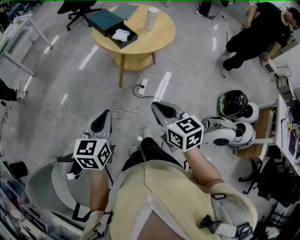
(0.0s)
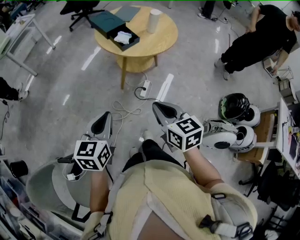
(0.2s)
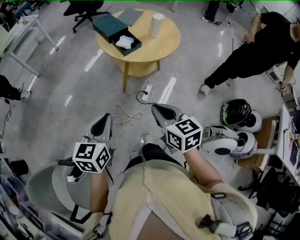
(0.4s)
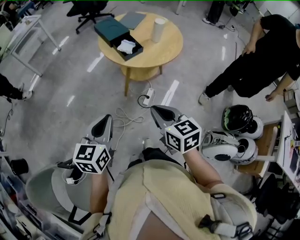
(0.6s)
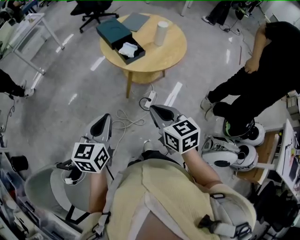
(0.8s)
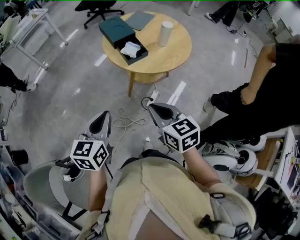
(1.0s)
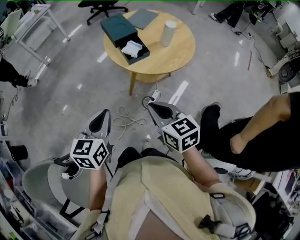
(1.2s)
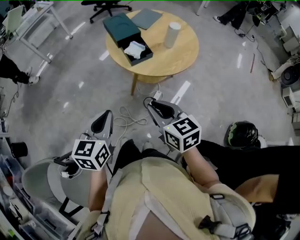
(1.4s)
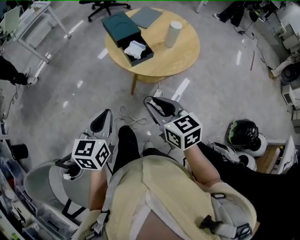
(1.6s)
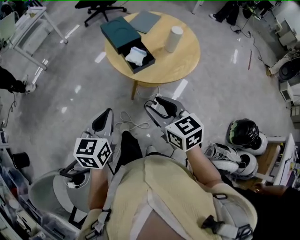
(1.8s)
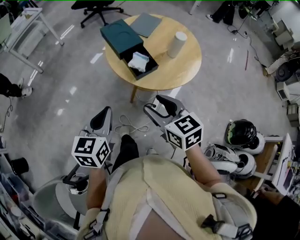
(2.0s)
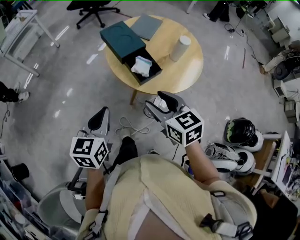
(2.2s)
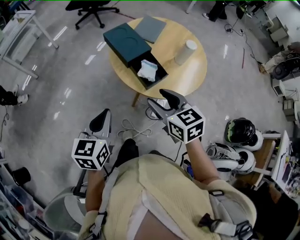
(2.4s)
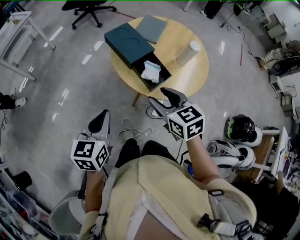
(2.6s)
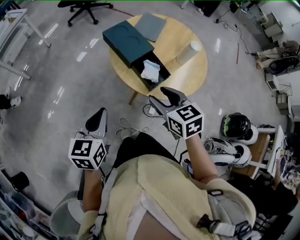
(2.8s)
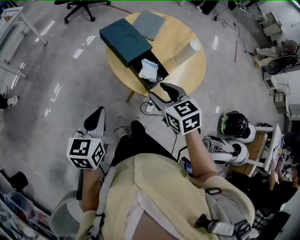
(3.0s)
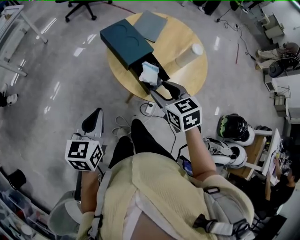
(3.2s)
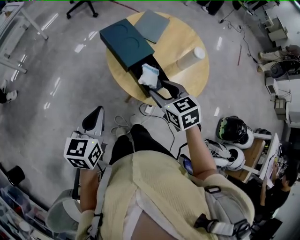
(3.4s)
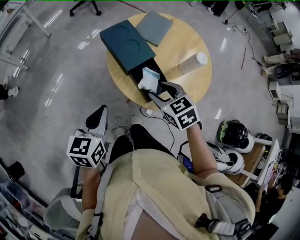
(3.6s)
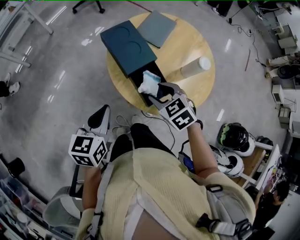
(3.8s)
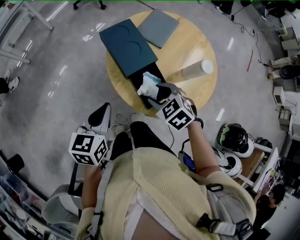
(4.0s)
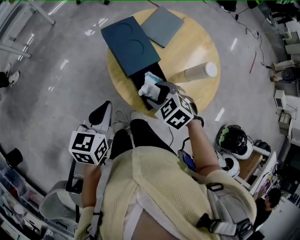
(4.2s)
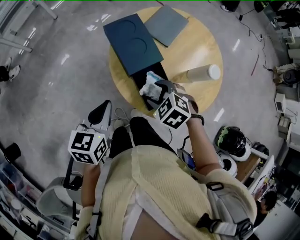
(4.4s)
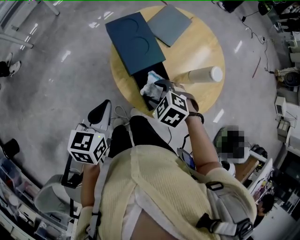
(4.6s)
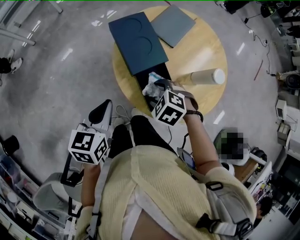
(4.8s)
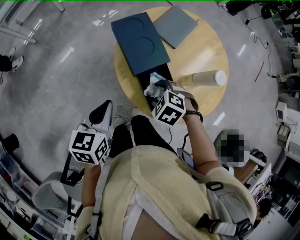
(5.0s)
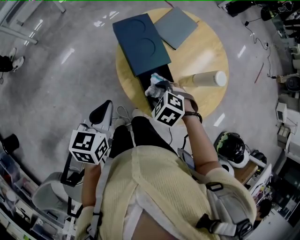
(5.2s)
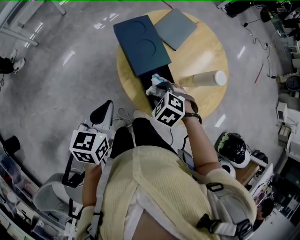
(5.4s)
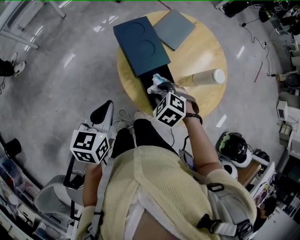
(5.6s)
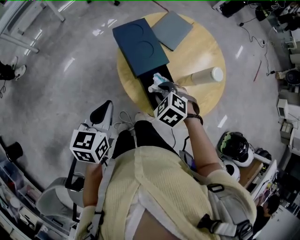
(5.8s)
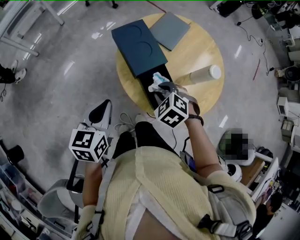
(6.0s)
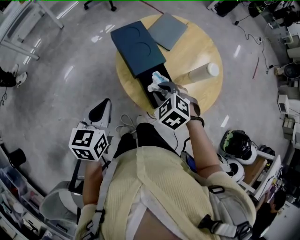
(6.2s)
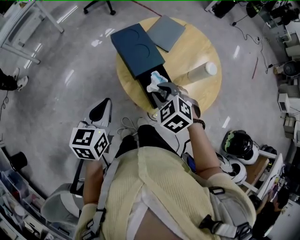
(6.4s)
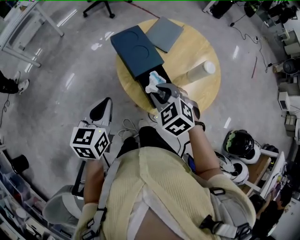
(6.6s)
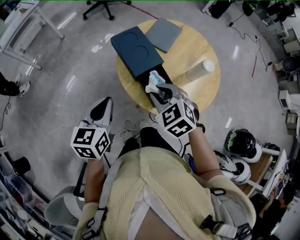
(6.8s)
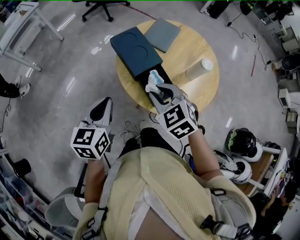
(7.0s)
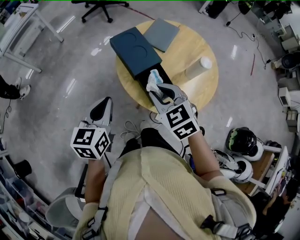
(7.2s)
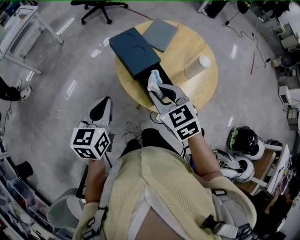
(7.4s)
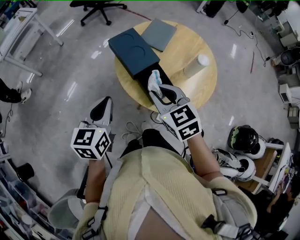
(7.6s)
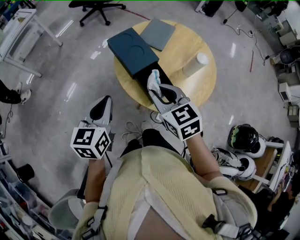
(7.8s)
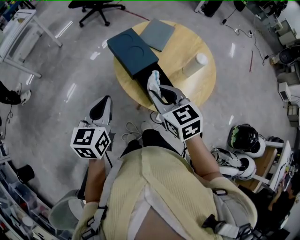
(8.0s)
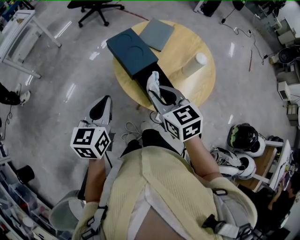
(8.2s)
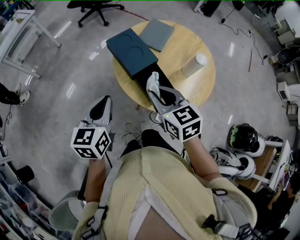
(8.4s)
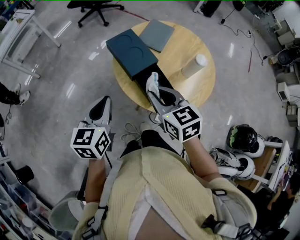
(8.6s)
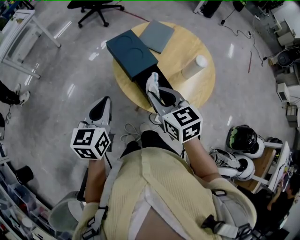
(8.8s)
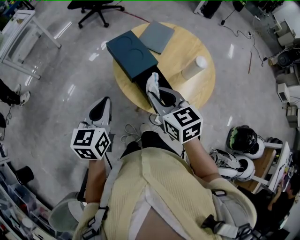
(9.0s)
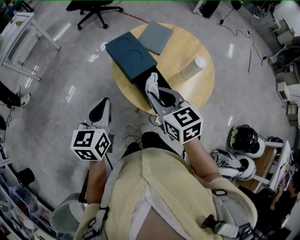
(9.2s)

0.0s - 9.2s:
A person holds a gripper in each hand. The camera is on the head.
0.0s - 1.6s: Both grippers move forward, about 15 cm. The right gripper opens its fingers.
1.6s - 3.0s: The right gripper shifts some 20 cm forward, and opens up. Meanwhile the left gripper travels forward and to the left by roughly 25 cm.
3.0s - 4.6s: The right gripper travels downward and forward by roughly 15 cm, and angles its fingers downward, by some 30 degrees. Meanwhile the left gripper heads forward and to the right, covering roughly 10 cm.
4.6s - 6.2s: The right gripper closes its fingers.
6.2s - 7.6s: The left gripper shifts by some 5 cm; the right gripper travels upward by some 10 cm, and changes its angle by some 40 degrees.
7.6s - 9.2s: The grippers move only a little.

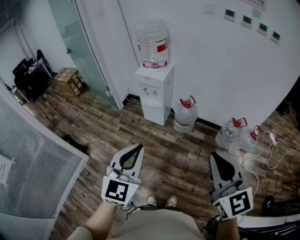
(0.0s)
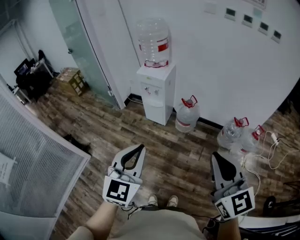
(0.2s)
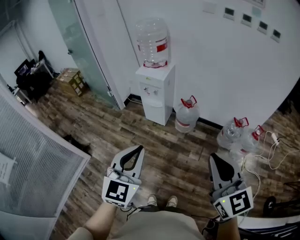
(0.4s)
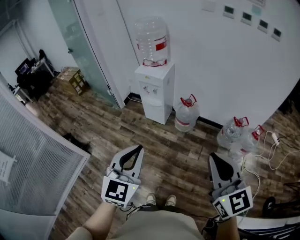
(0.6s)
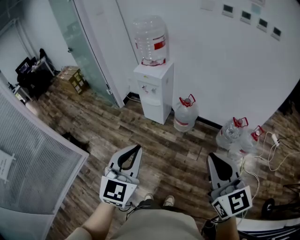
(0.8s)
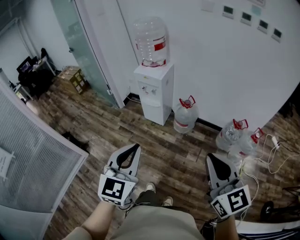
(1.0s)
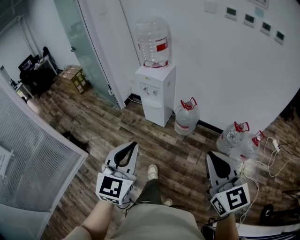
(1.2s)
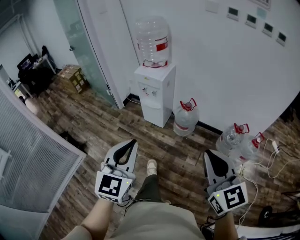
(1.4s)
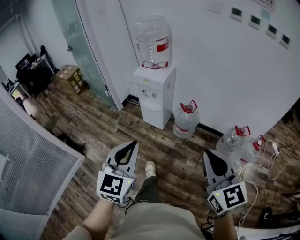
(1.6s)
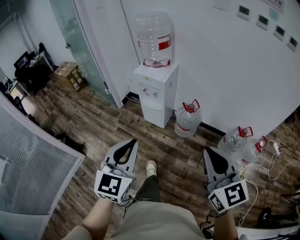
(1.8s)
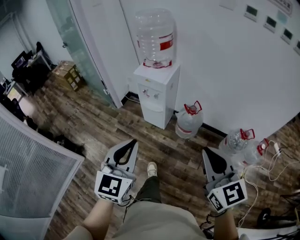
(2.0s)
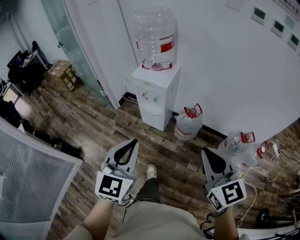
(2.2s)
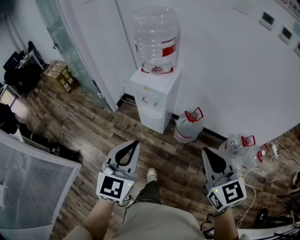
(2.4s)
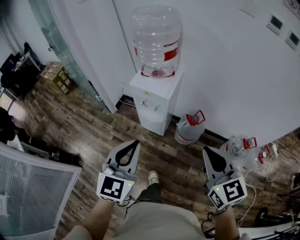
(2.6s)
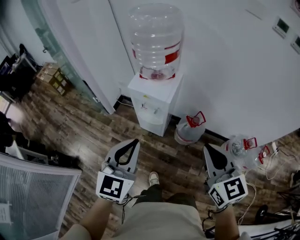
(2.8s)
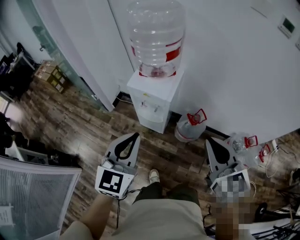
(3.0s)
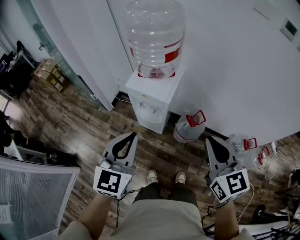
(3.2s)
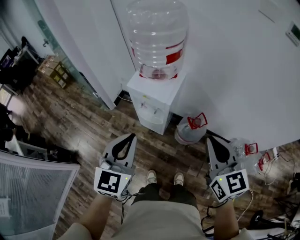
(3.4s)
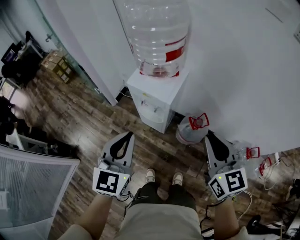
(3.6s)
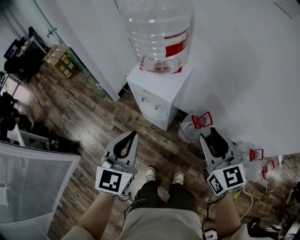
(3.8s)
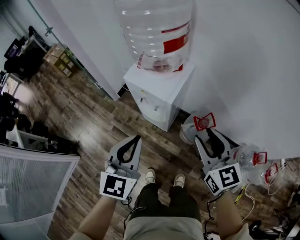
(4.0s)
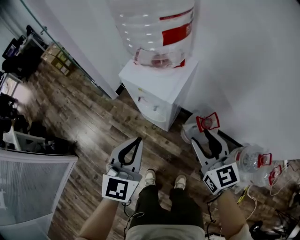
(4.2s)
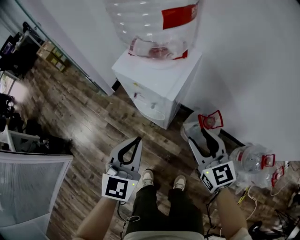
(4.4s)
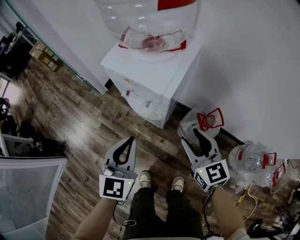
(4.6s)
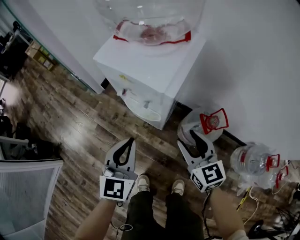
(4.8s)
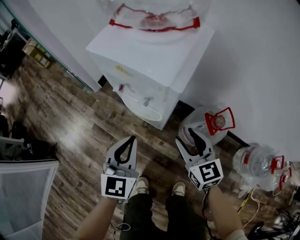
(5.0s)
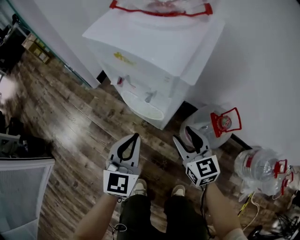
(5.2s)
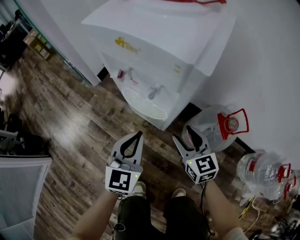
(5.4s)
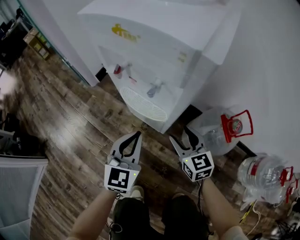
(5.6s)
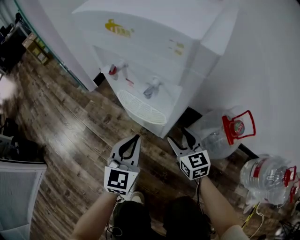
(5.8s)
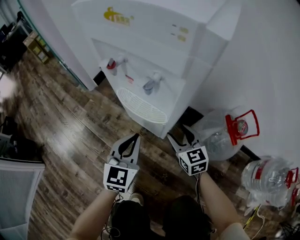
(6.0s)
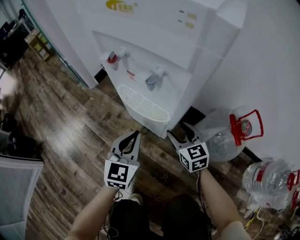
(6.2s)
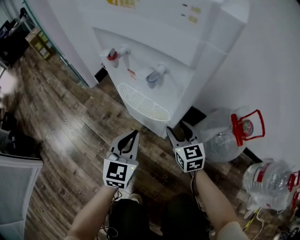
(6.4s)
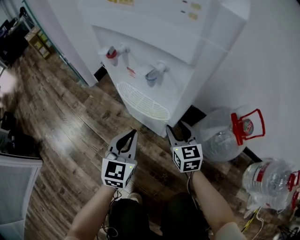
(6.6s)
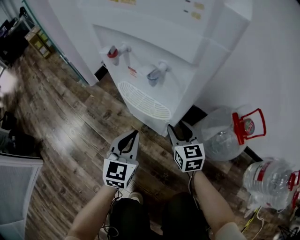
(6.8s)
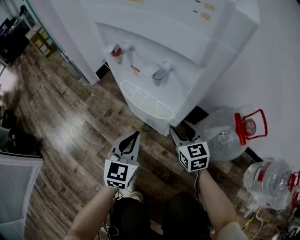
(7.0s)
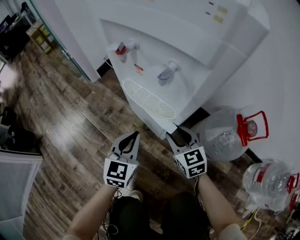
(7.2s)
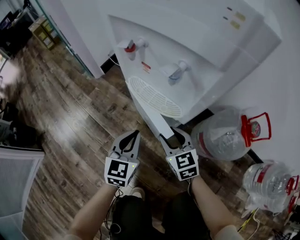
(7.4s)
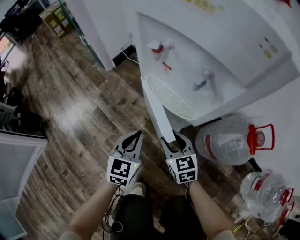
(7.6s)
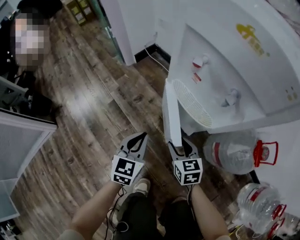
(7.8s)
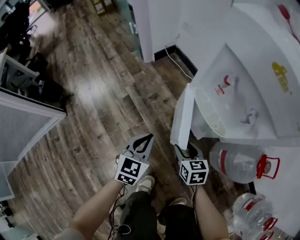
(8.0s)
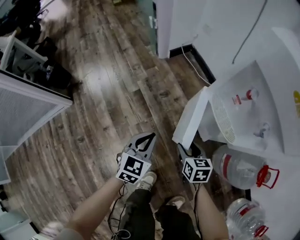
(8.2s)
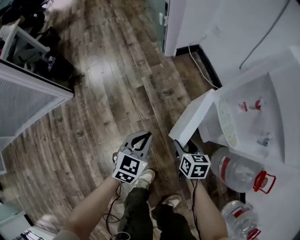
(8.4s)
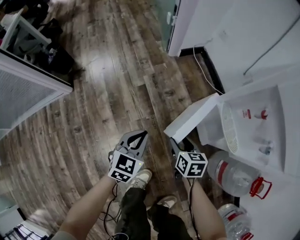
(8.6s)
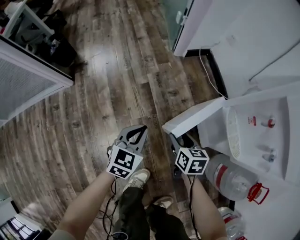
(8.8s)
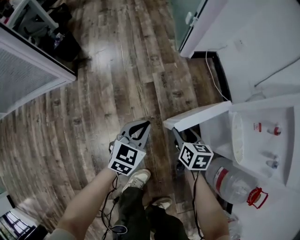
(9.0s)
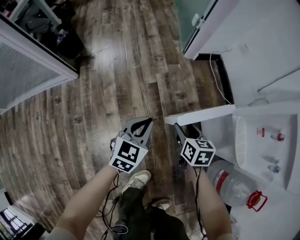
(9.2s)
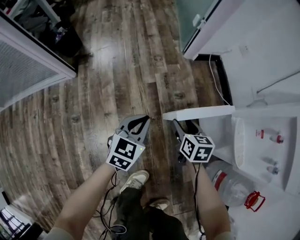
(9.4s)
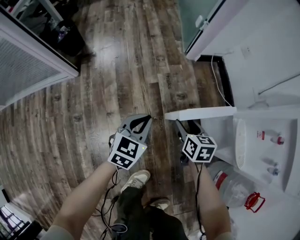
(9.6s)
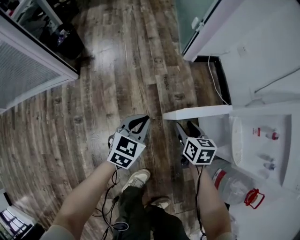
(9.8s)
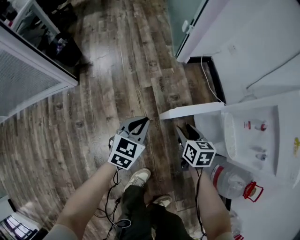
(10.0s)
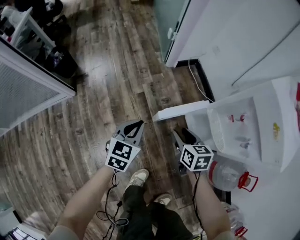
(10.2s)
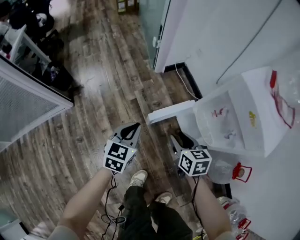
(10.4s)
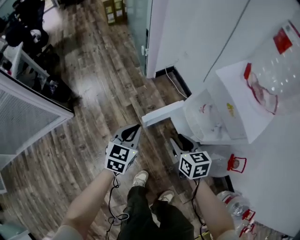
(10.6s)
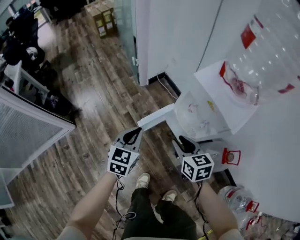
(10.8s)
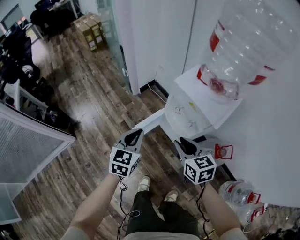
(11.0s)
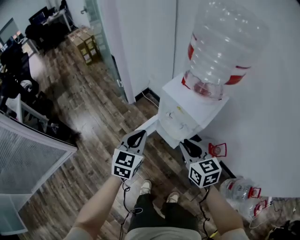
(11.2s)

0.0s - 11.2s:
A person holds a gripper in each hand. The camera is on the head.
0.0s - 1.6s: The grippers both shift forward and downward by some 10 cm.
1.6s - 3.2s: The two grippers go approximately 40 cm forward.
3.2s - 4.8s: The right gripper is displaced downward and forward by about 40 cm, and opens its fingers. The left gripper goes some 35 cm downward.
4.8s - 6.4s: Both grippers travel together downward, about 30 cm.
6.4s - 8.0s: The two grippers go about 20 cm to the left. The right gripper rotates about 30 degrees.
8.0s - 9.6s: The right gripper is displaced to the left and forward by about 25 cm, while the left gripper moves to the left, approximately 20 cm.
9.6s - 11.2s: The grippers both shift upward and to the right by some 50 cm. The left gripper swivels approximately 30 degrees. Meanwhile the right gripper changes its angle by some 30 degrees, and closes its fingers.

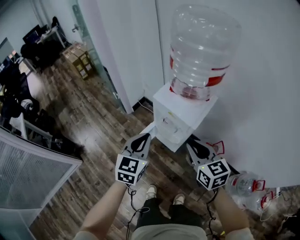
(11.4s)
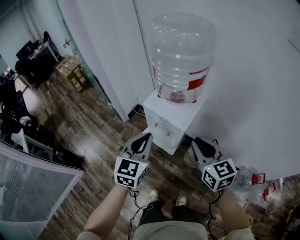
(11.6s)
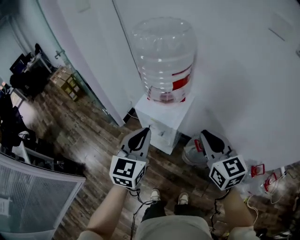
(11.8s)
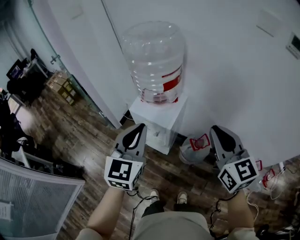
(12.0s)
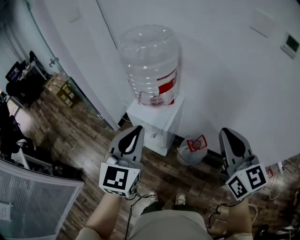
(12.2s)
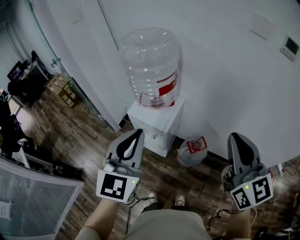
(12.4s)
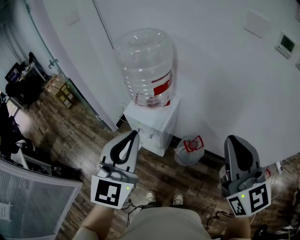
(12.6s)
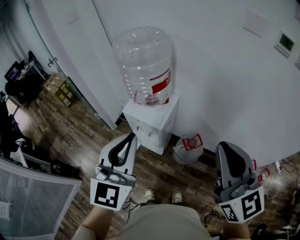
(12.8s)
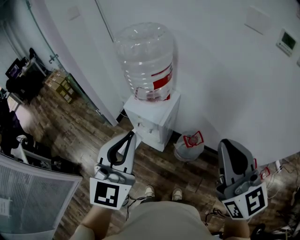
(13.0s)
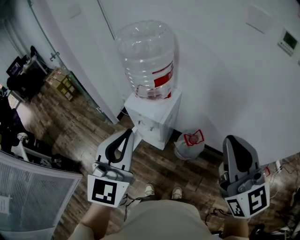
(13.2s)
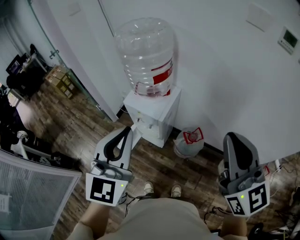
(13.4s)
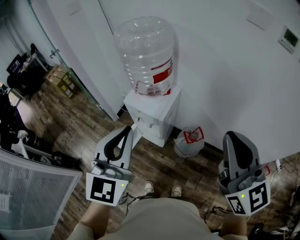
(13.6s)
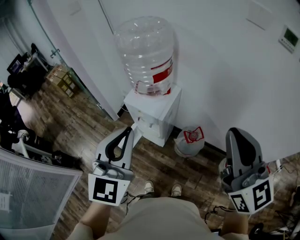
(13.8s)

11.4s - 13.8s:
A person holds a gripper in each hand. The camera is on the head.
11.4s - 12.6s: The grippers both shift upward and to the right by roughly 35 cm. The right gripper rotates approximately 30 degrees. The left gripper turns by about 20 degrees.
12.6s - 13.8s: There are only small adjustments of the grippers.

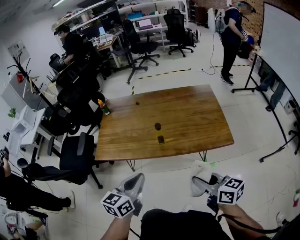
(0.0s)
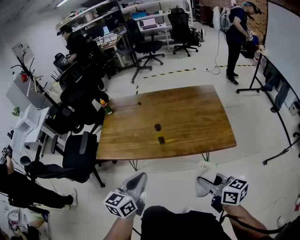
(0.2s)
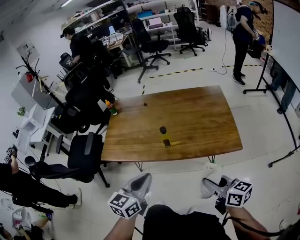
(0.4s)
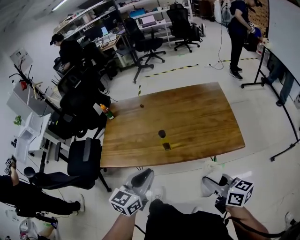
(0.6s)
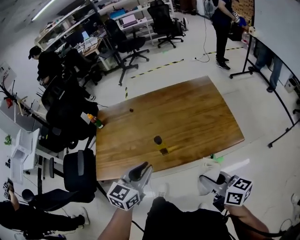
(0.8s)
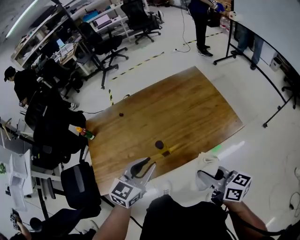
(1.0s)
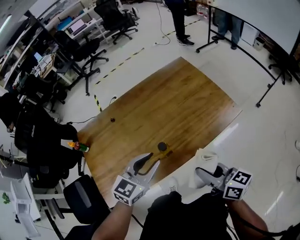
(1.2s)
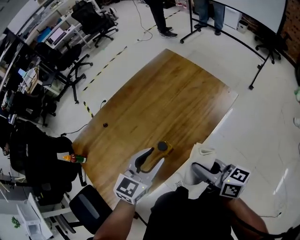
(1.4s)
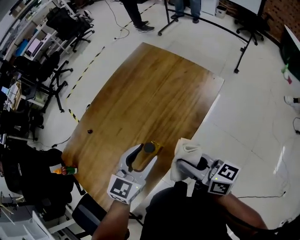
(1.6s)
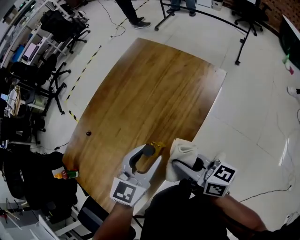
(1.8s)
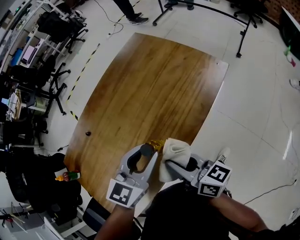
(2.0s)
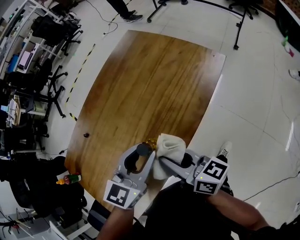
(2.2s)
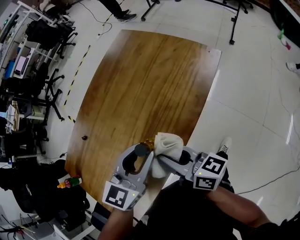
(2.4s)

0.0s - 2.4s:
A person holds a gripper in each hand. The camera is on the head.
0.0s - 1.2s: The left gripper shifts by roughly 25 cm, swivels some 50 degrees, and opens its fingers. Meanwhile the right gripper ends up approximately 15 cm from where it was, and rotates roughly 30 degrees.
1.2s - 2.4s: The right gripper goes roughly 15 cm to the left and downward, and rotates about 20 degrees. The left gripper travels downward by some 5 cm, and opens, then closes again.
